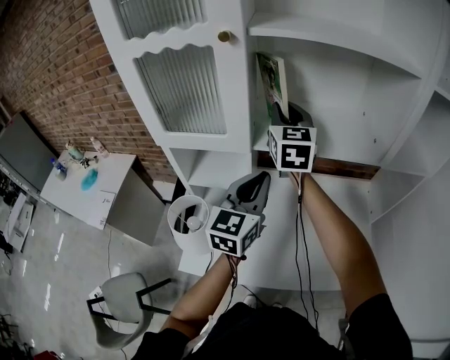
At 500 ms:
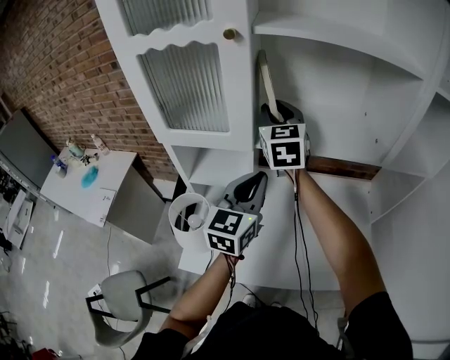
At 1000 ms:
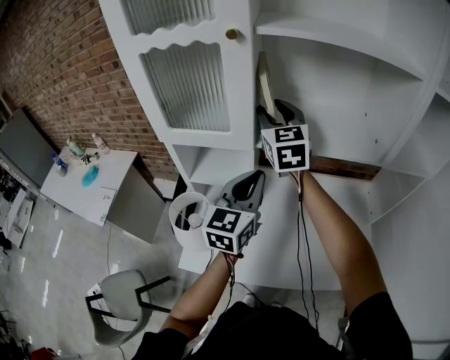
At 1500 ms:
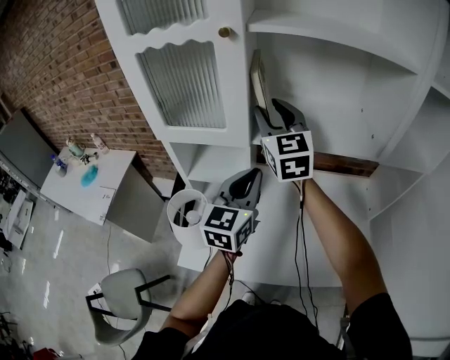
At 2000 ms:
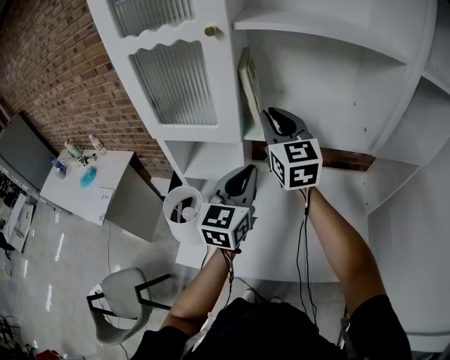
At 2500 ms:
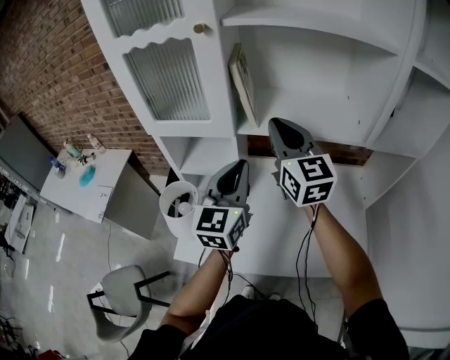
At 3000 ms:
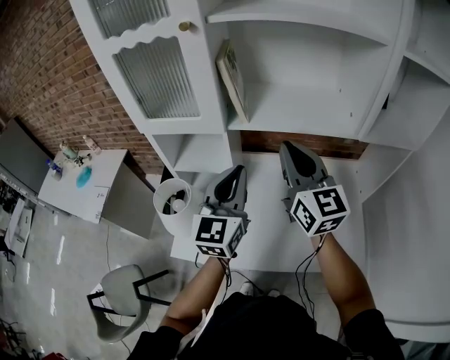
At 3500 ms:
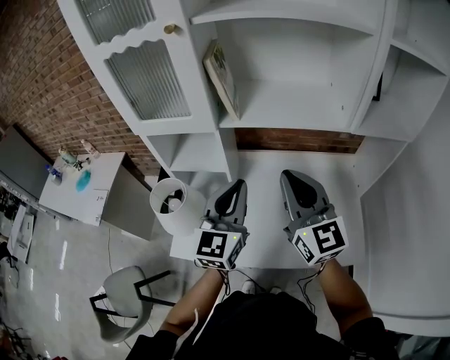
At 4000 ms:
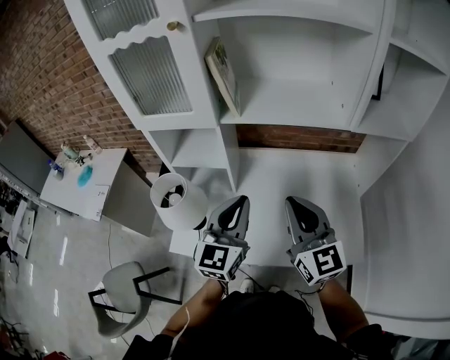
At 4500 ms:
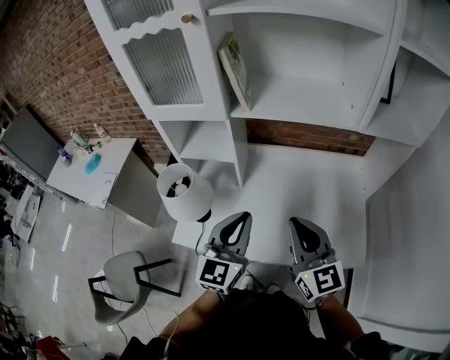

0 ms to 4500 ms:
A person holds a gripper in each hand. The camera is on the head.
0 ms to 2000 ms: The right gripper moves backward, some 5 cm.
2000 ms to 4500 ms: The left gripper is displaced backward and downward by roughly 20 cm. Meanwhile the right gripper shifts roughly 30 cm backward and downward.

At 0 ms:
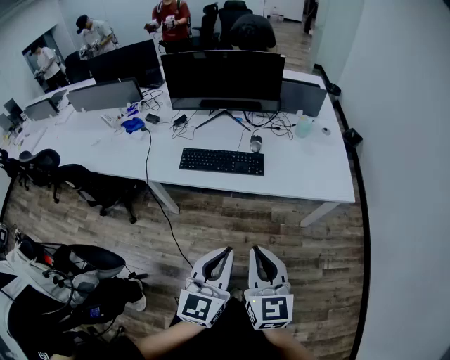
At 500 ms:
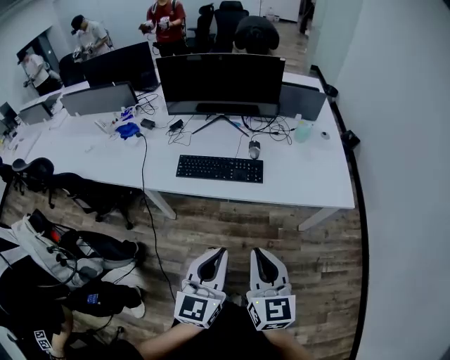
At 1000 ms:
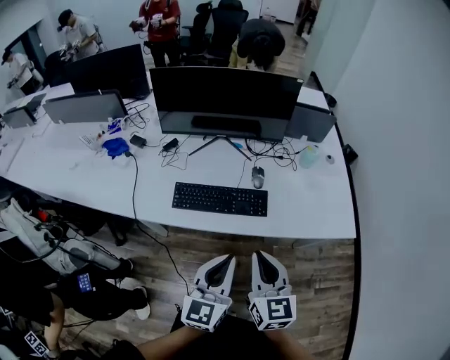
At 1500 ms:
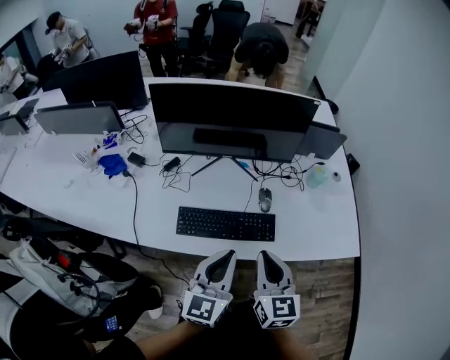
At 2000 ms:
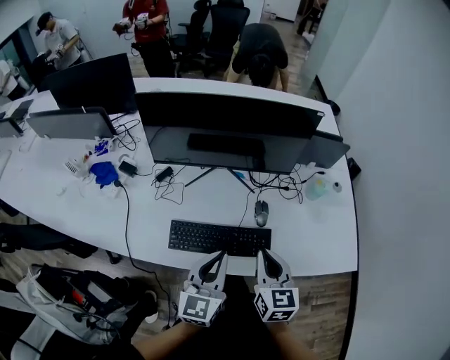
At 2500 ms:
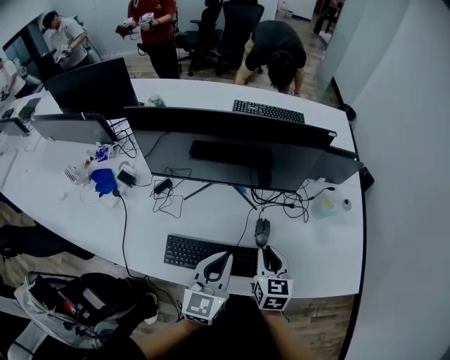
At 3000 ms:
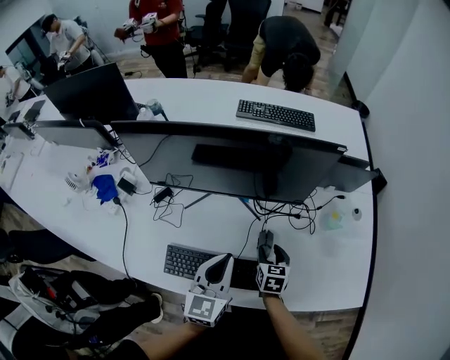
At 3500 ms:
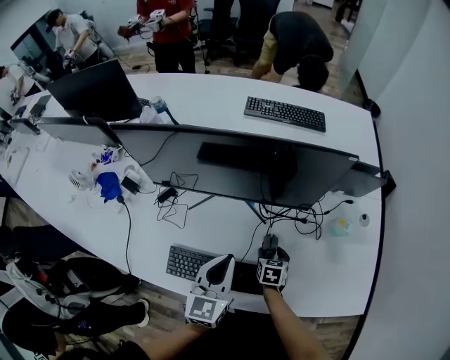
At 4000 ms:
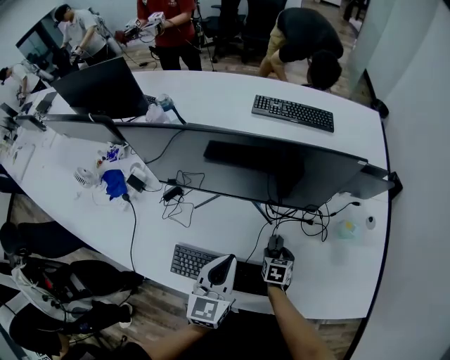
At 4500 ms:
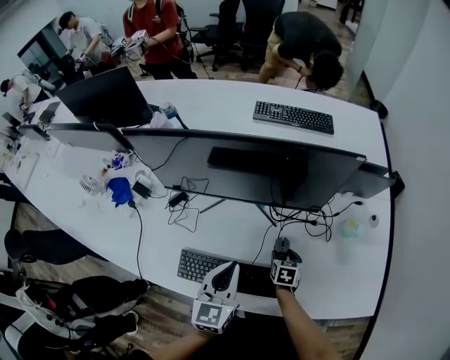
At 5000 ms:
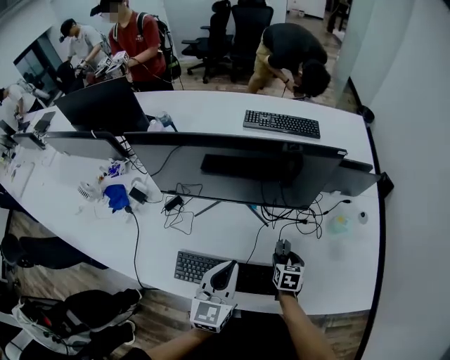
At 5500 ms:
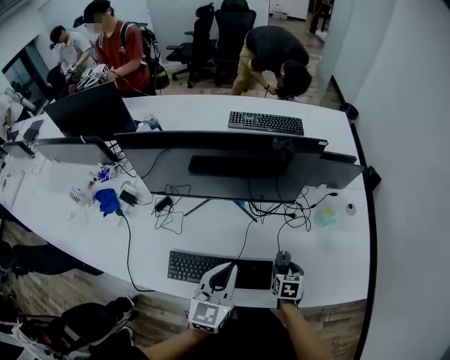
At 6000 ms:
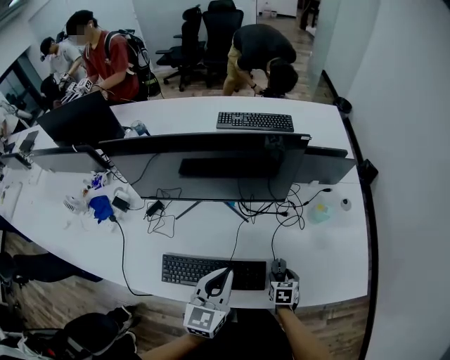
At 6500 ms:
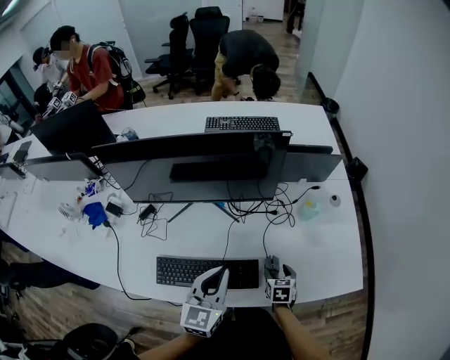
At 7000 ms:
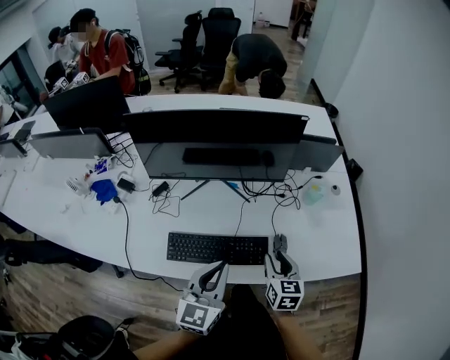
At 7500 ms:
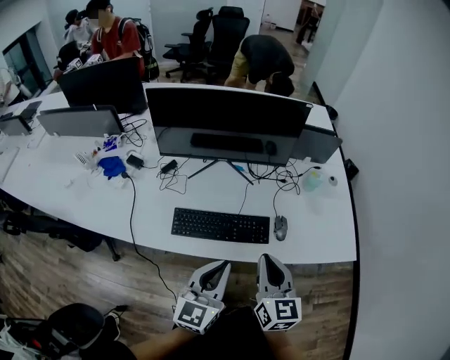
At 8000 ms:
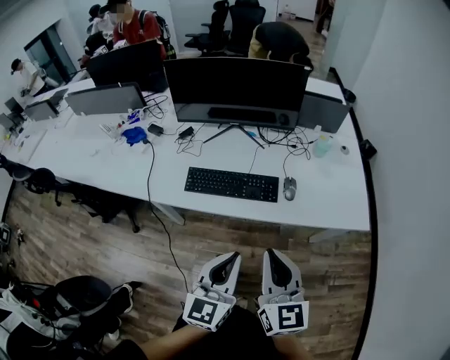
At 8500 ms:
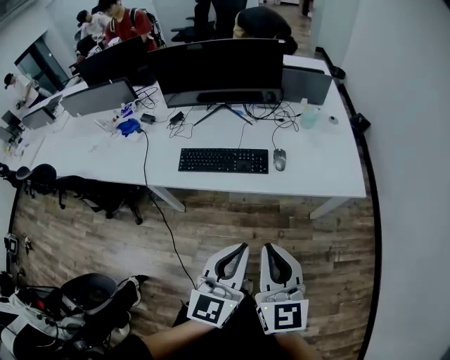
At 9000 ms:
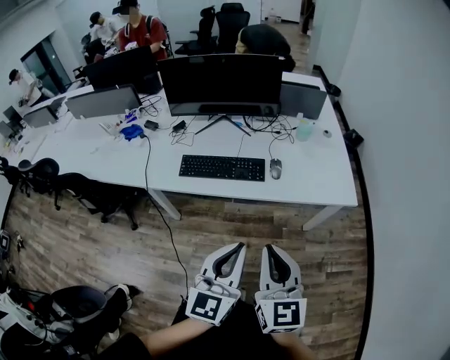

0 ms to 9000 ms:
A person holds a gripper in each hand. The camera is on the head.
0 ms to 2000 ms: The pair of grippers is taken forward, some 40 cm.
2000 ms to 4500 ms: The left gripper shifts about 15 cm forward, while the right gripper shifts about 35 cm downward and forward, tips its fingers downward by some 30 degrees, and opens its fingers.
4500 ms to 7000 ms: The right gripper moves up and down over roughly 20 cm, changing direction 2 times, and changes its angle by some 30 degrees. The left gripper goes some 15 cm backward and upward.
7000 ms to 9000 ms: The right gripper goes approximately 40 cm backward and upward, turns by some 30 degrees, and closes. The left gripper heads backward, covering some 35 cm.

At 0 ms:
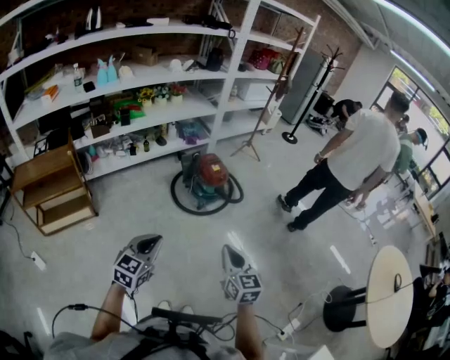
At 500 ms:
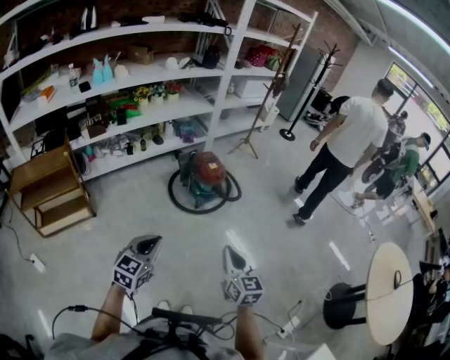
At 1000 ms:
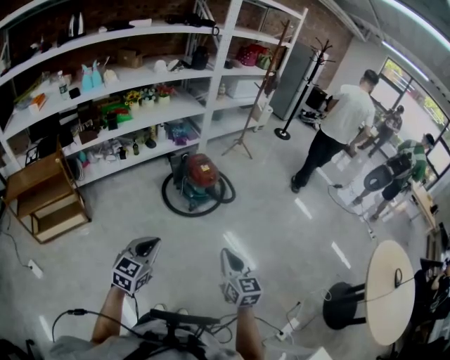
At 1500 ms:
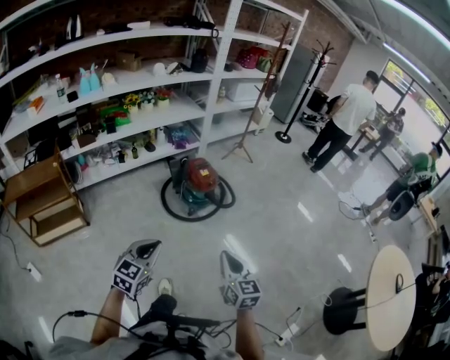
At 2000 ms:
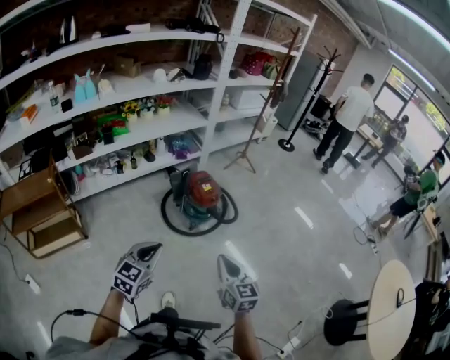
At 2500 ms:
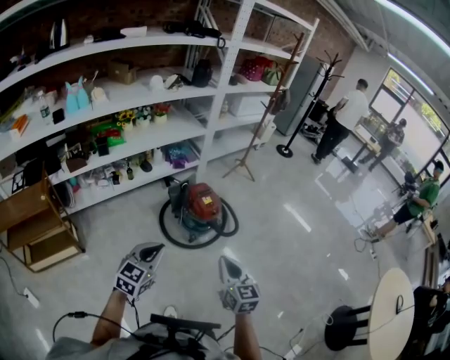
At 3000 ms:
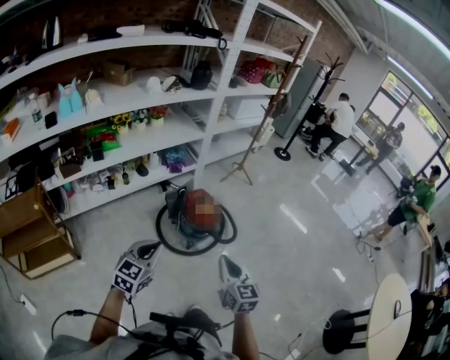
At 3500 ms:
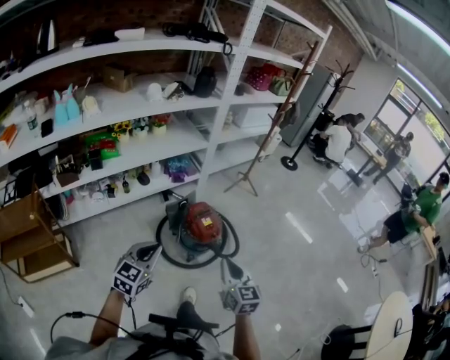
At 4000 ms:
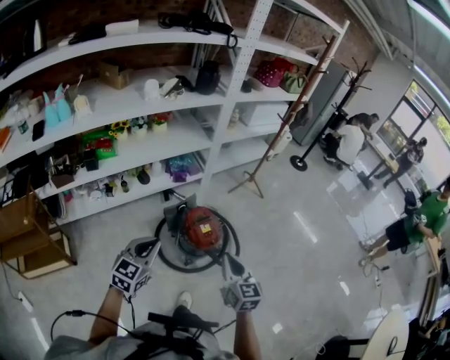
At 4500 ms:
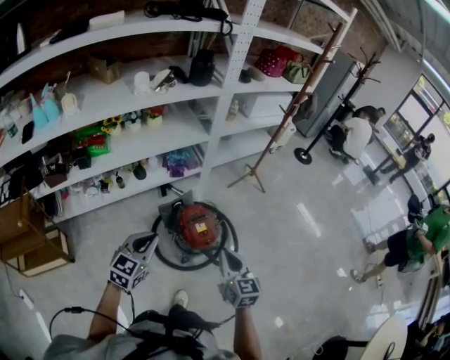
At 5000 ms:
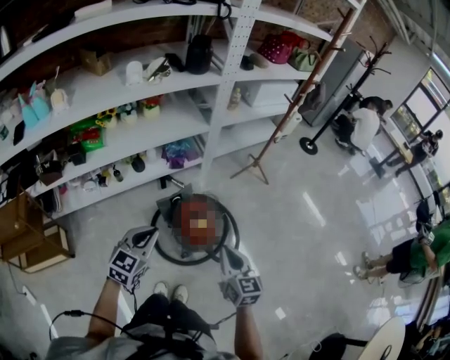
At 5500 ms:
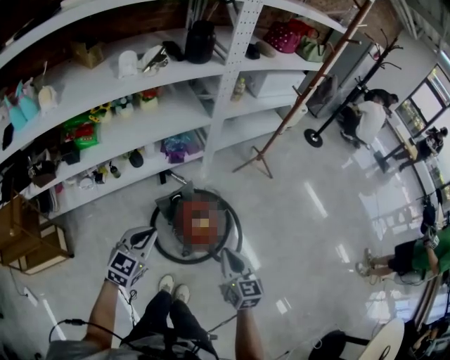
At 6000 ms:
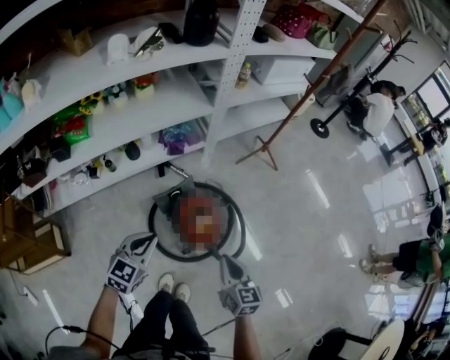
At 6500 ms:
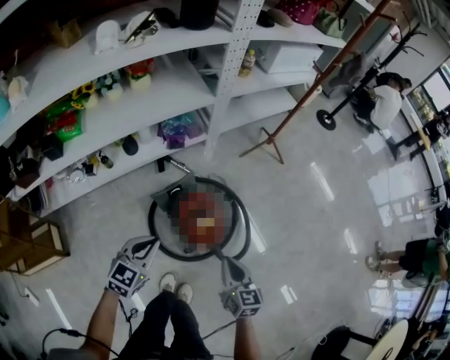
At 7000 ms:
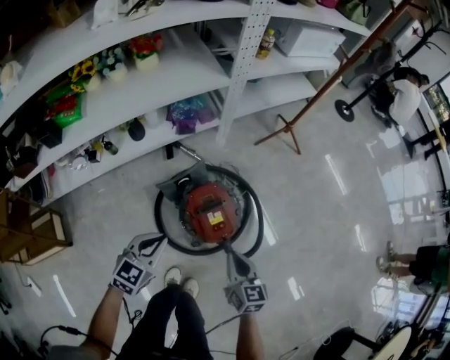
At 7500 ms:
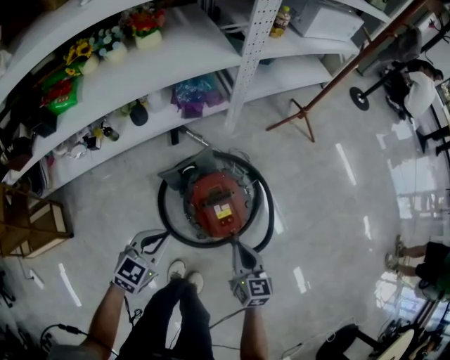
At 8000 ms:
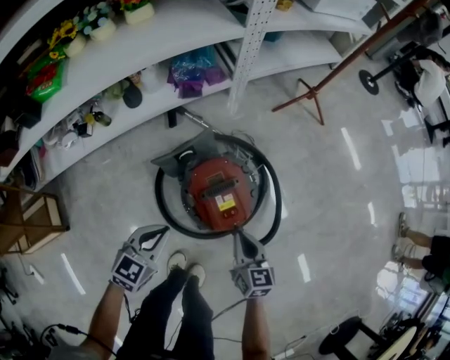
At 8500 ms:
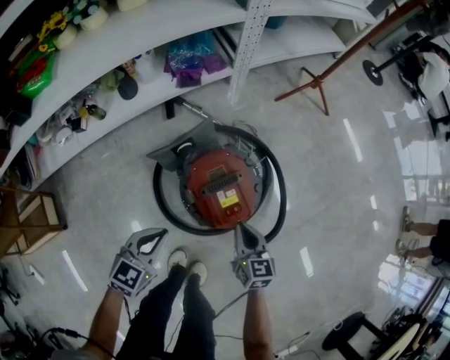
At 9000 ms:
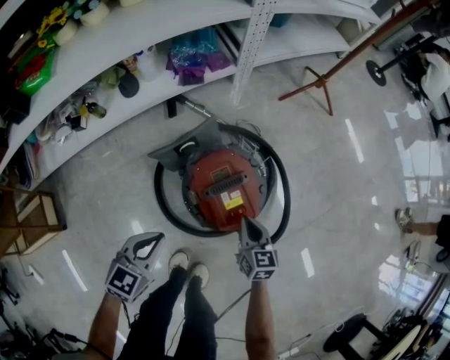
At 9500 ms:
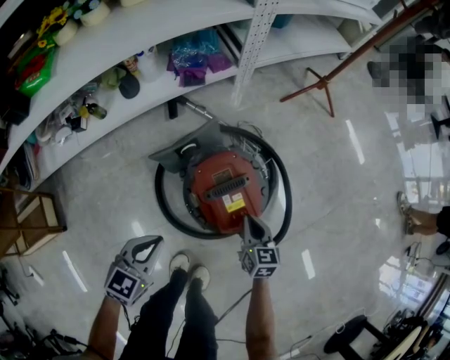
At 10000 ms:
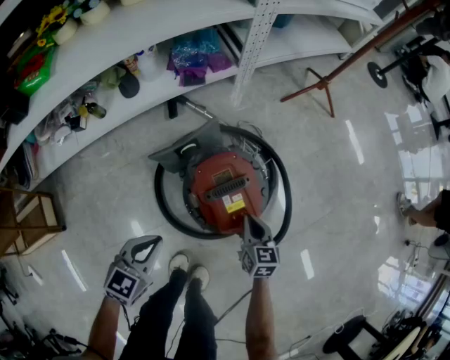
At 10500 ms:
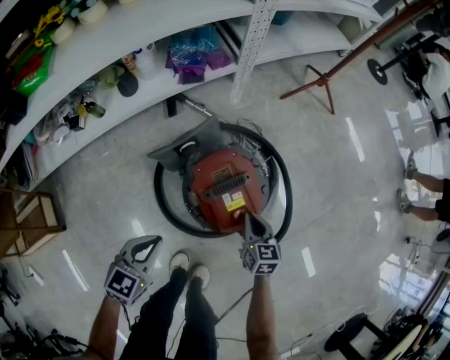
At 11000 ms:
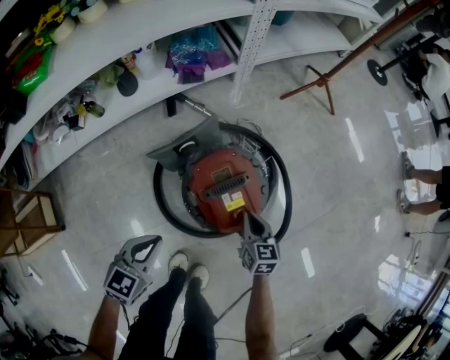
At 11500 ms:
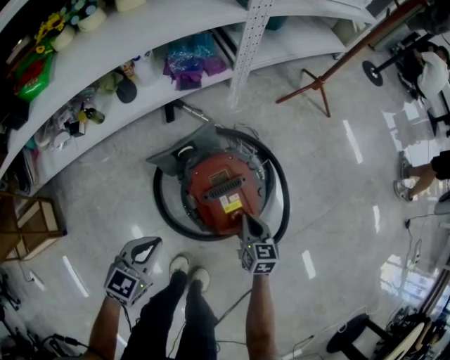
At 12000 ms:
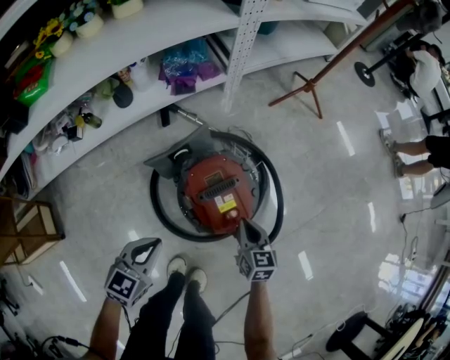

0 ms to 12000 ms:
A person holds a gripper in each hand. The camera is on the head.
0 ms to 2000 ms: The two grippers go about 15 cm forward.
2000 ms to 4000 ms: Both grippers travel together forward, about 40 cm.
4000 ms to 6000 ms: The two grippers go about 25 cm forward and downward.
6000 ms to 8000 ms: Both grippers travel together downward, roughly 30 cm.
8000 ms to 10000 ms: The left gripper changes place by roughly 5 cm. Meanwhile the right gripper shifts roughly 10 cm downward and forward.
10000 ms to 12000 ms: The grippers move only a little.

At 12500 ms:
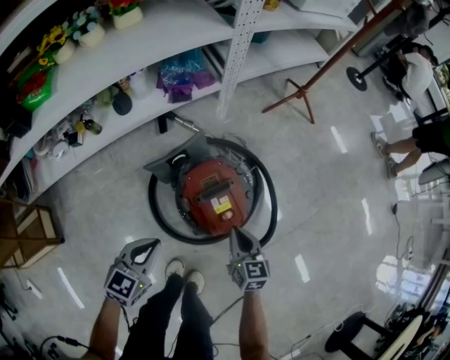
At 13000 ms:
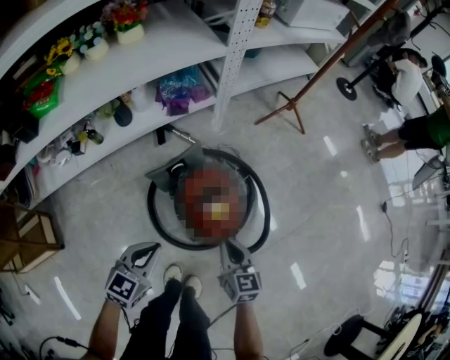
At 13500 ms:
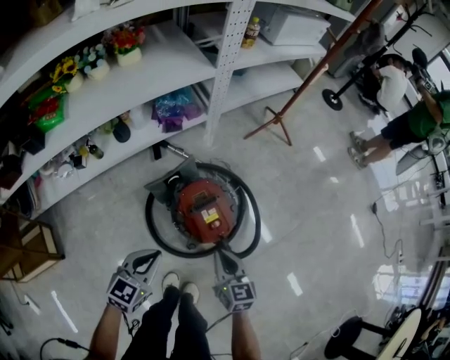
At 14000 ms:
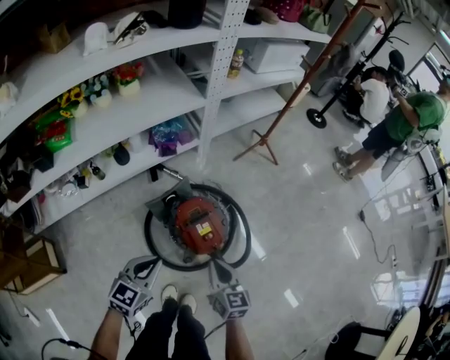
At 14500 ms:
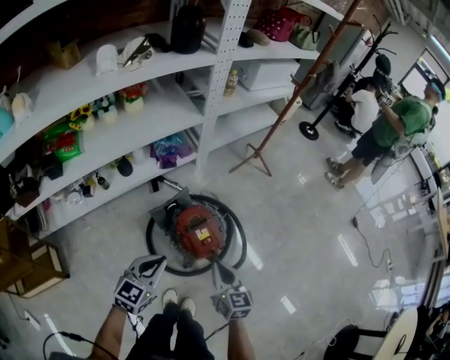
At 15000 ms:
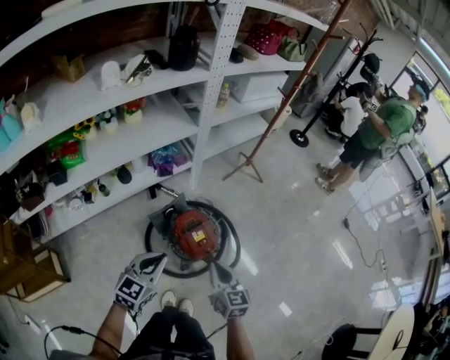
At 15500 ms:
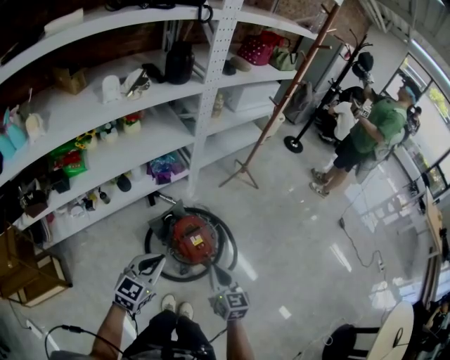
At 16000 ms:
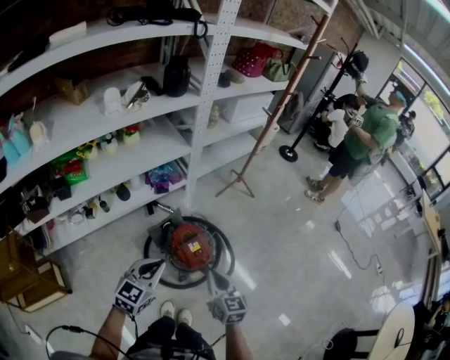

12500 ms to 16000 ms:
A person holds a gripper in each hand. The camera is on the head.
12500 ms to 14500 ms: Both grippers move upward, roughly 25 cm.
14500 ms to 16000 ms: The left gripper heads upward, covering about 15 cm; the right gripper goes approximately 15 cm upward and backward.
